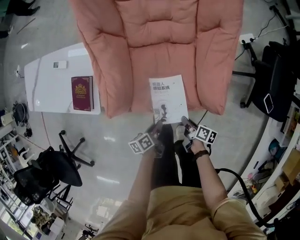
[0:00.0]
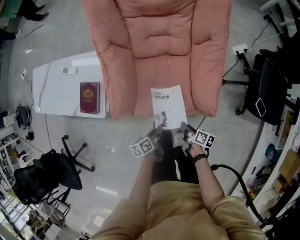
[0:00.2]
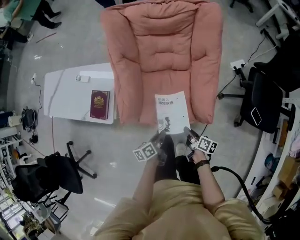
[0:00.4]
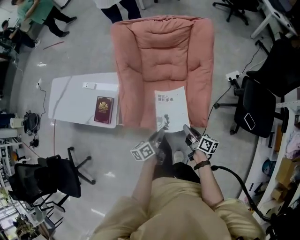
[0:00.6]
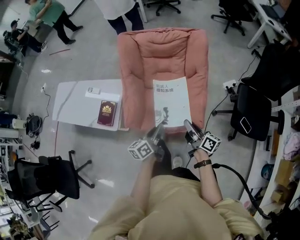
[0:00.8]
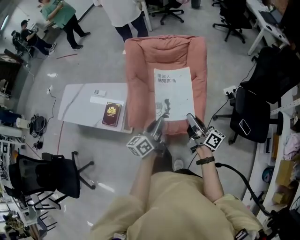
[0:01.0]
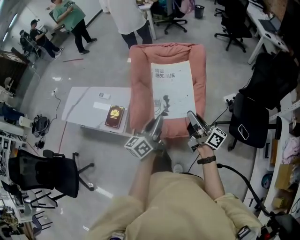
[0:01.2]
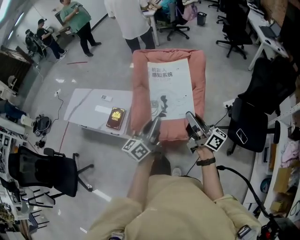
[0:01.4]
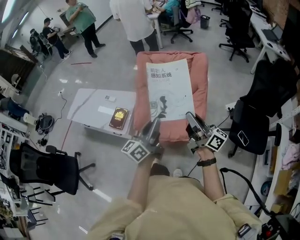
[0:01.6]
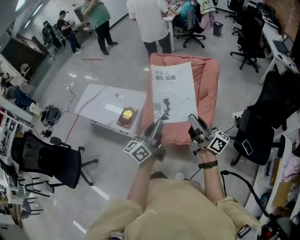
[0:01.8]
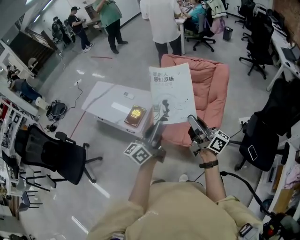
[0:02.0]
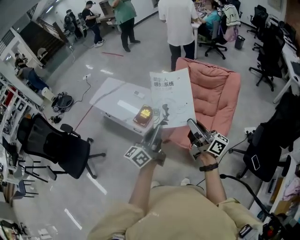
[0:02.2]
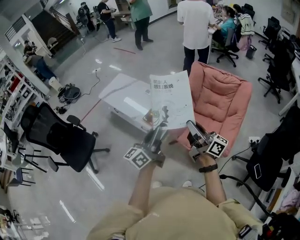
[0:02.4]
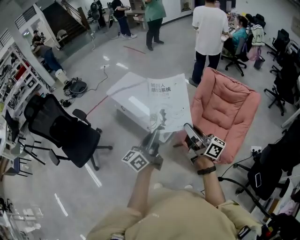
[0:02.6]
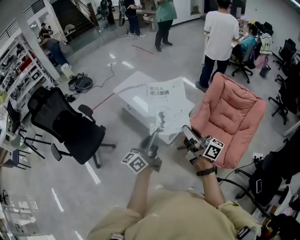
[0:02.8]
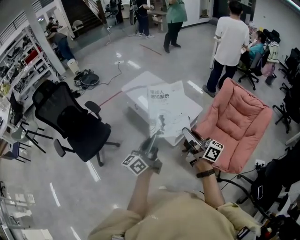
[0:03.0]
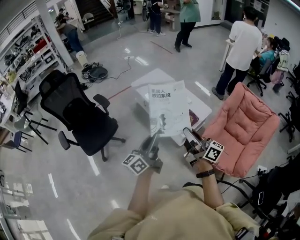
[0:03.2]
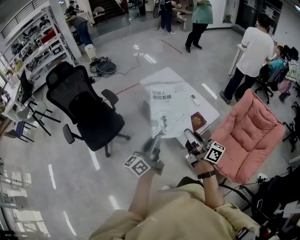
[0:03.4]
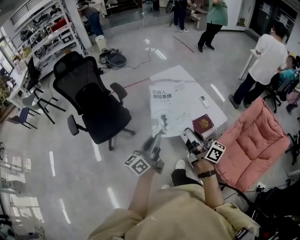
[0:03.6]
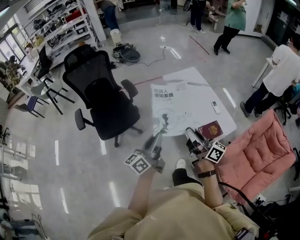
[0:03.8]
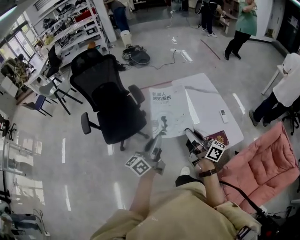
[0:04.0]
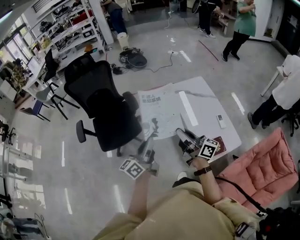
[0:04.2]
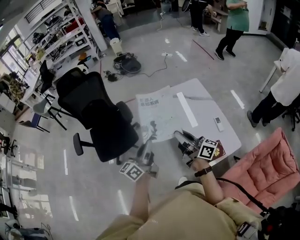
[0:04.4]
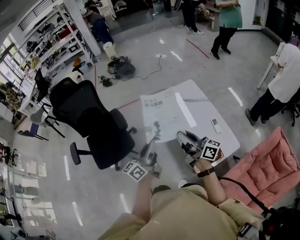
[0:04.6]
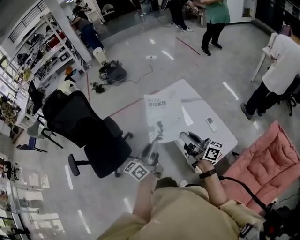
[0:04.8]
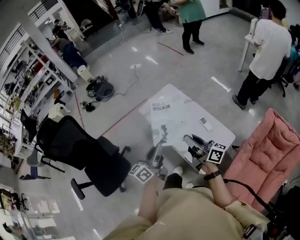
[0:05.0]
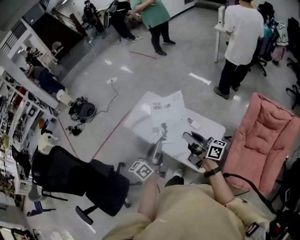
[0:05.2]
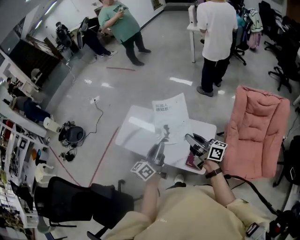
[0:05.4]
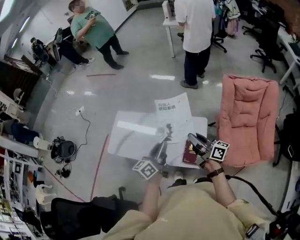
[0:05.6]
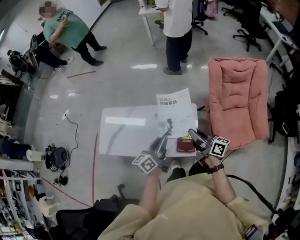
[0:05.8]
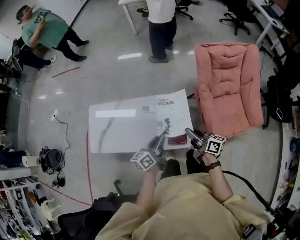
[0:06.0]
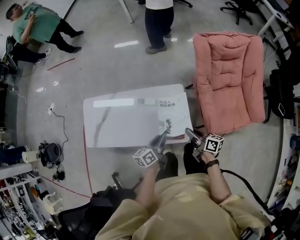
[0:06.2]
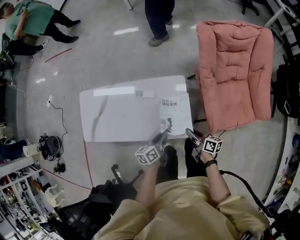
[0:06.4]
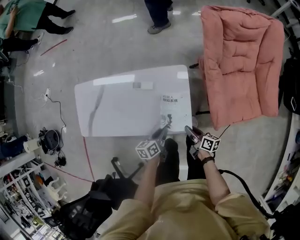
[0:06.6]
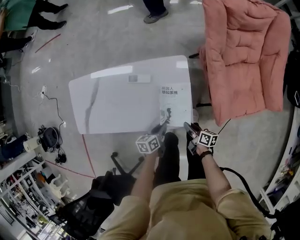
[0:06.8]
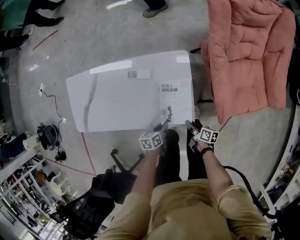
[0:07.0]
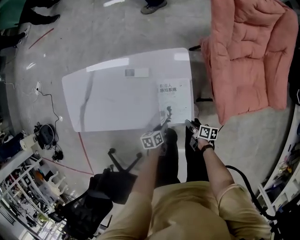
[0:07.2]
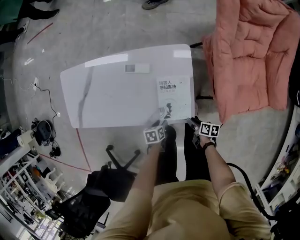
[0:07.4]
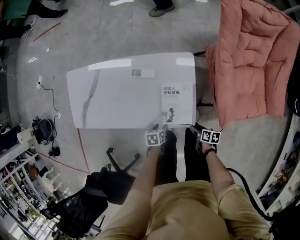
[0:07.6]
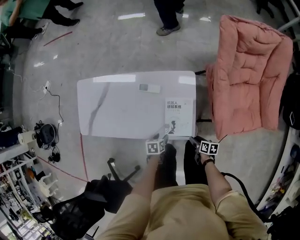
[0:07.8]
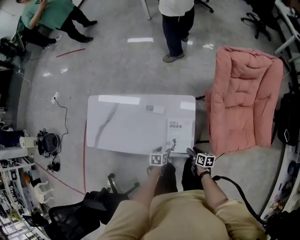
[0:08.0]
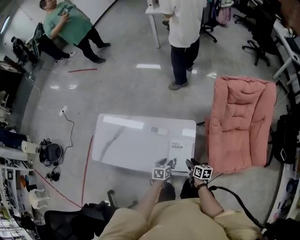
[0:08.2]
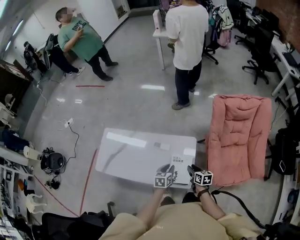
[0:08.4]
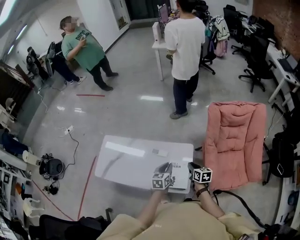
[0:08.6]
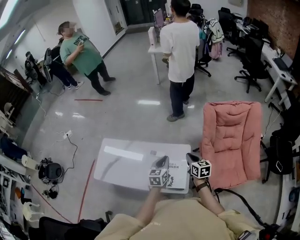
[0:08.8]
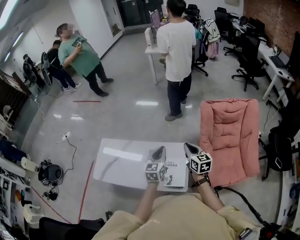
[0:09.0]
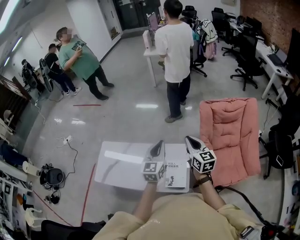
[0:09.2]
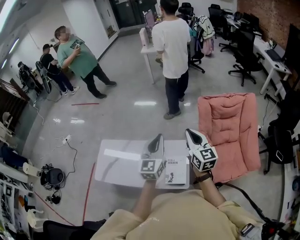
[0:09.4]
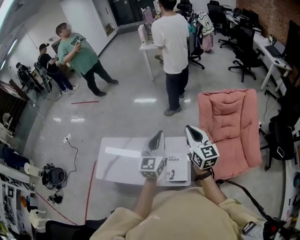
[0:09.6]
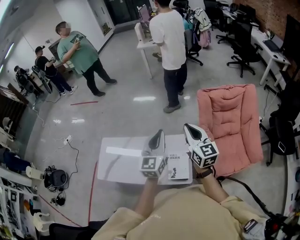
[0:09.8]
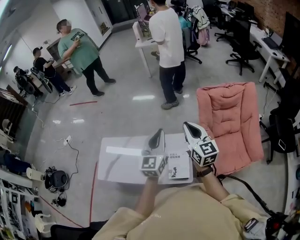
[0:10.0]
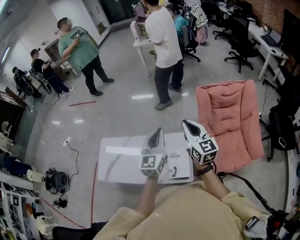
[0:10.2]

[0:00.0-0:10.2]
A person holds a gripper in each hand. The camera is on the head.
0:00.0 to 0:01.4: Both grippers move upward, roughly 60 cm. The left gripper points its fingers some 50 degrees further upward, while the right gripper points its fingers some 60 degrees further upward.
0:01.4 to 0:03.0: The two grippers travel together, about 50 cm. The right gripper changes its angle by roughly 40 degrees. The left gripper changes its angle by roughly 30 degrees.
0:03.0 to 0:04.4: The right gripper changes place by about 40 cm, and turns by roughly 30 degrees, while the left gripper ends up some 35 cm from where it was, and turns by about 30 degrees.
0:04.4 to 0:05.8: The left gripper shifts by approximately 50 cm, and turns by roughly 70 degrees. Meanwhile the right gripper moves about 35 cm, and changes its angle by roughly 70 degrees.
0:05.8 to 0:07.2: The two grippers go roughly 50 cm downward. The left gripper tilts its fingers approximately 50 degrees downward, while the right gripper points its fingers about 40 degrees further downward.
0:07.2 to 0:08.8: Both grippers travel together upward, about 50 cm. The right gripper rolls counterclockwise, seen from behind, by roughly 50 degrees, and opens, then closes once more. The left gripper turns by some 50 degrees, and opens and closes again.
0:08.8 to 0:10.2: Both grippers travel together upward, approximately 20 cm. The left gripper swivels roughly 30 degrees. The right gripper turns by approximately 30 degrees.

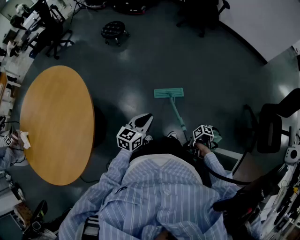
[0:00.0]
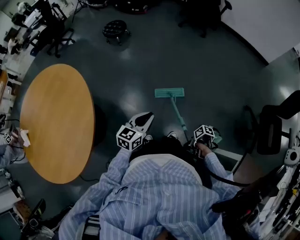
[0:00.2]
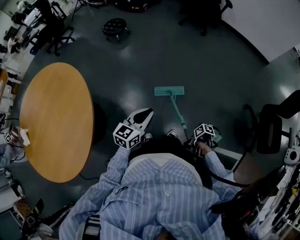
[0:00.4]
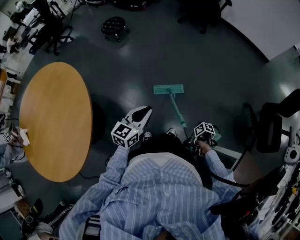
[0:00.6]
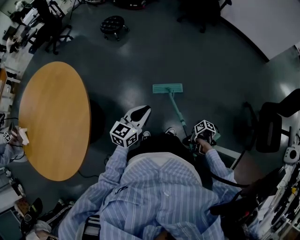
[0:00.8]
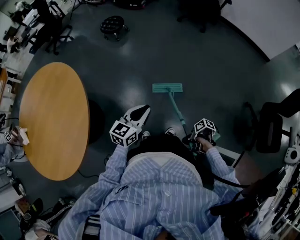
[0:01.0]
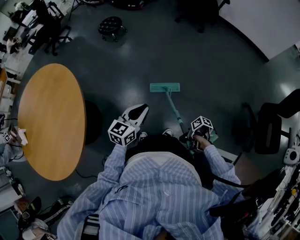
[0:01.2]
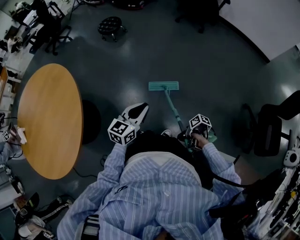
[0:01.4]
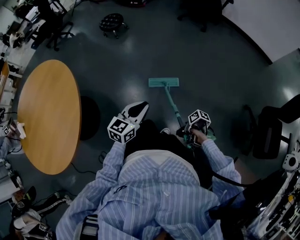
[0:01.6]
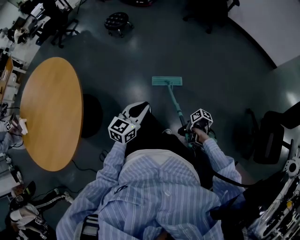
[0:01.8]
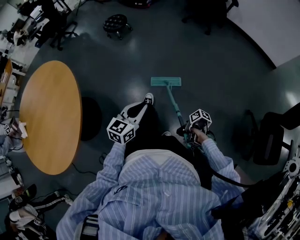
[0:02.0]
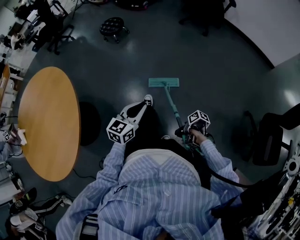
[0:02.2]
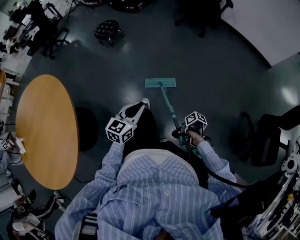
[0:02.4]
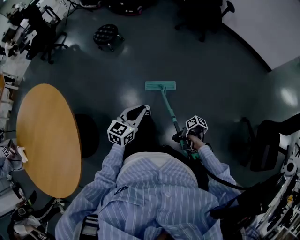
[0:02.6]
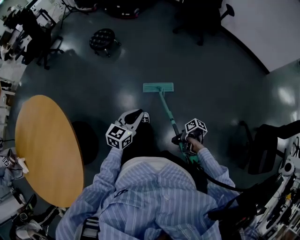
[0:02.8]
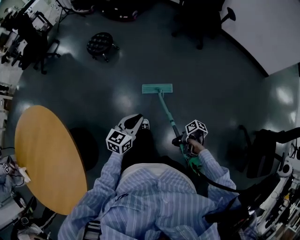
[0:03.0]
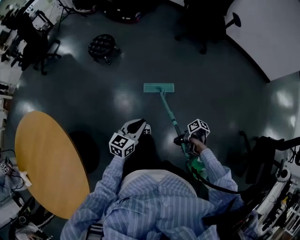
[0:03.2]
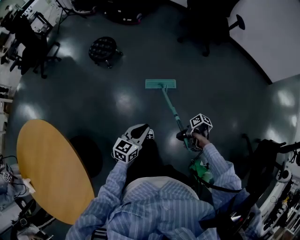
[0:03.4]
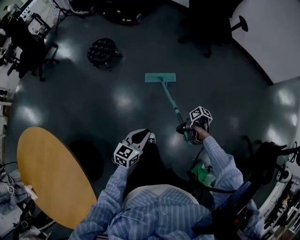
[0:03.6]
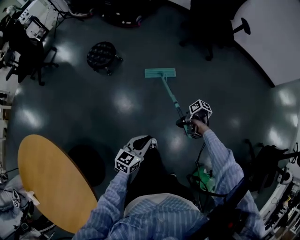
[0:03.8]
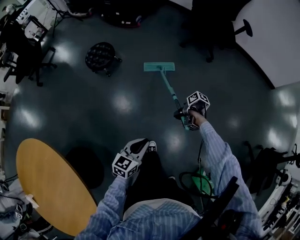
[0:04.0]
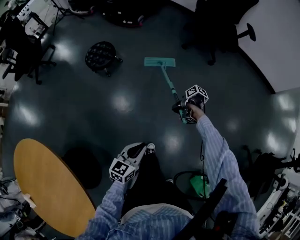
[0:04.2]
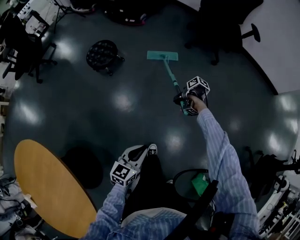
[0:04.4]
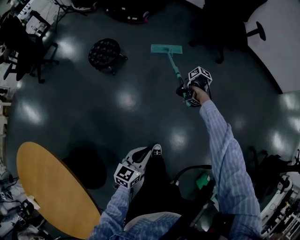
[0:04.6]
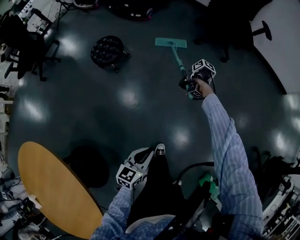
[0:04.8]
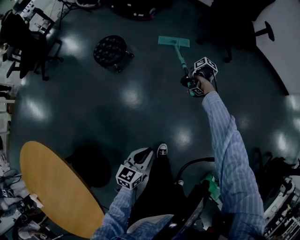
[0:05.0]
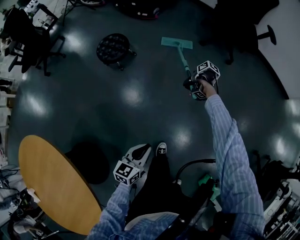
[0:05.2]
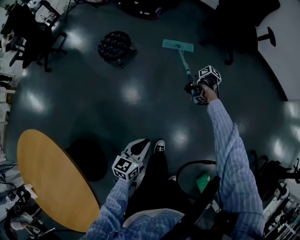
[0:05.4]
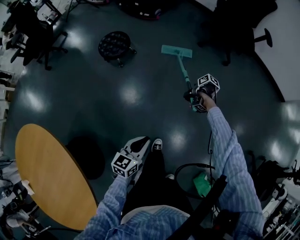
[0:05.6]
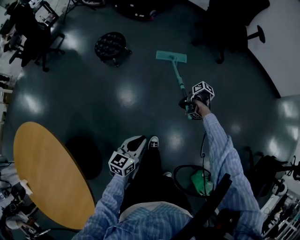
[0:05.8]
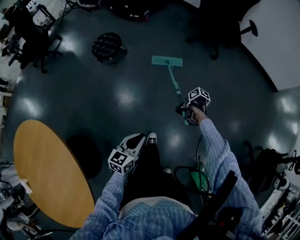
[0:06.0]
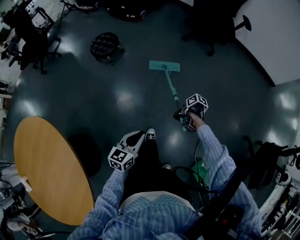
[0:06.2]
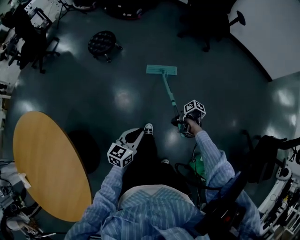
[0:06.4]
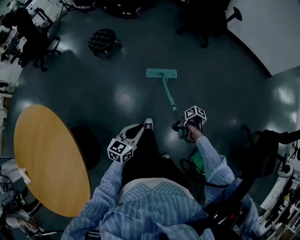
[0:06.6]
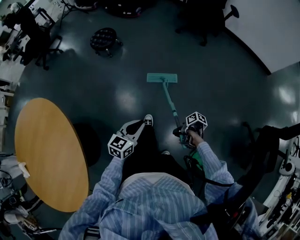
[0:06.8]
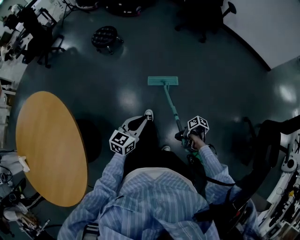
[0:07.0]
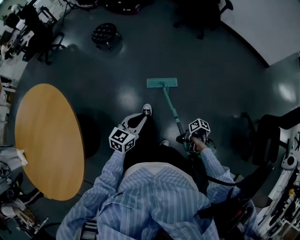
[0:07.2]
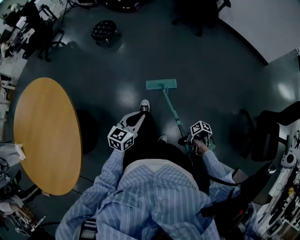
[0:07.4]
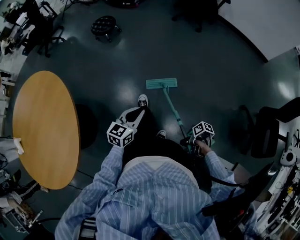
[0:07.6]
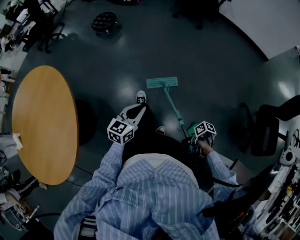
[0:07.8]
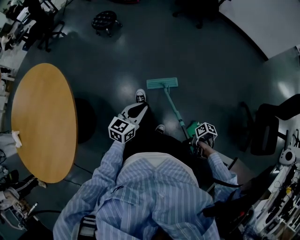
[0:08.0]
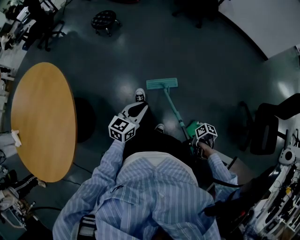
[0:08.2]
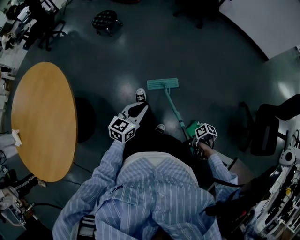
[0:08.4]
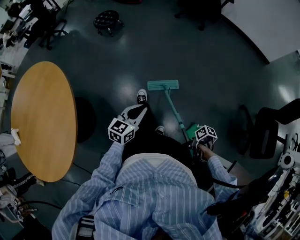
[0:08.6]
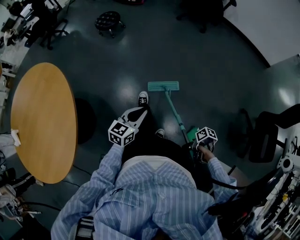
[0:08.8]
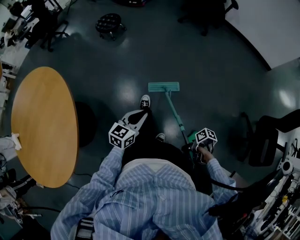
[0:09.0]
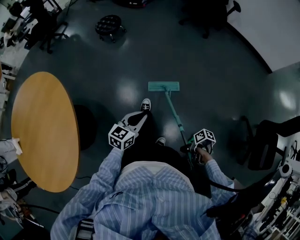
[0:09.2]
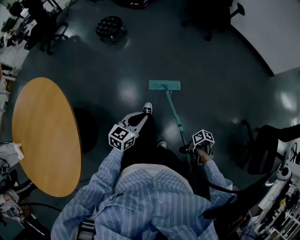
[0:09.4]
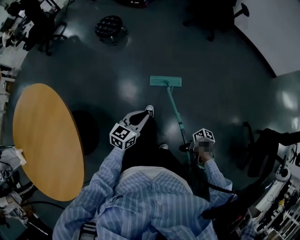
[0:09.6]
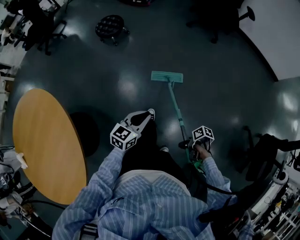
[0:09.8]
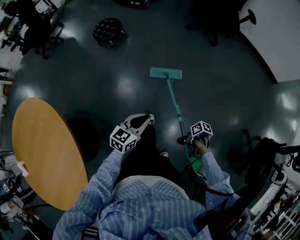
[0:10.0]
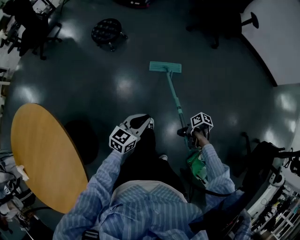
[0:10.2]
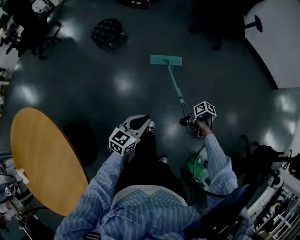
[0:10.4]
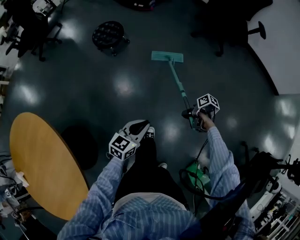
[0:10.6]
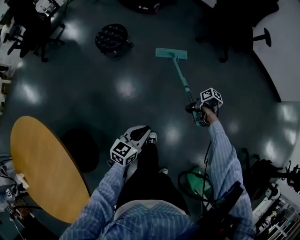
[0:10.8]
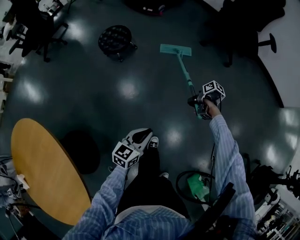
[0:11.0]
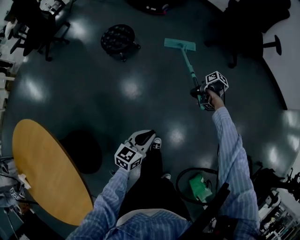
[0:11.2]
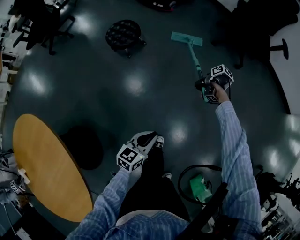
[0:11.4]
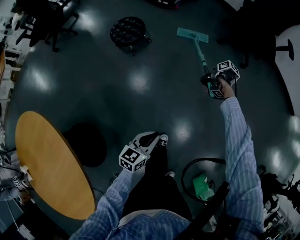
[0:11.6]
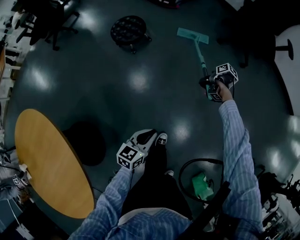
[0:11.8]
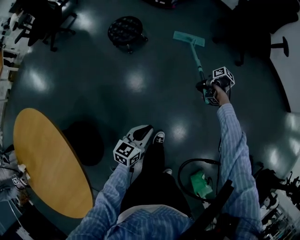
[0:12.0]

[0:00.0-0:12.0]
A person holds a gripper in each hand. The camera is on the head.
0:00.0 to 0:01.6: The left gripper moves about 10 cm.
0:01.6 to 0:03.0: The left gripper moves approximately 30 cm.
0:03.0 to 0:04.4: The left gripper moves about 20 cm.
0:04.4 to 0:06.0: The left gripper moves approximately 10 cm.
0:06.0 to 0:07.6: The left gripper moves approximately 35 cm.
0:09.0 to 0:10.4: The left gripper shifts by about 35 cm.
0:10.4 to 0:12.0: The left gripper ends up approximately 10 cm from where it was.

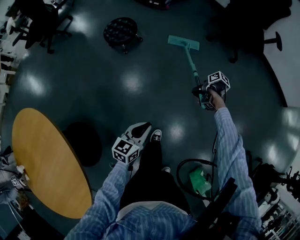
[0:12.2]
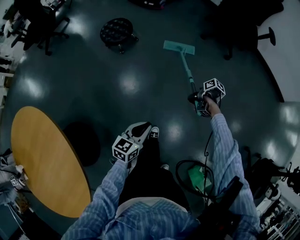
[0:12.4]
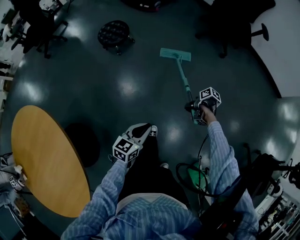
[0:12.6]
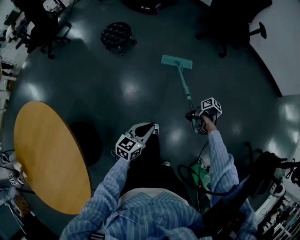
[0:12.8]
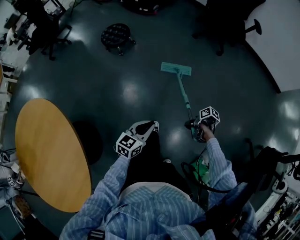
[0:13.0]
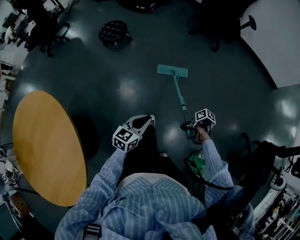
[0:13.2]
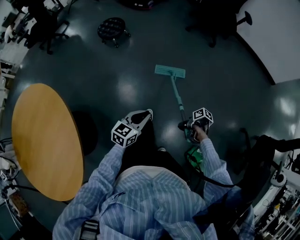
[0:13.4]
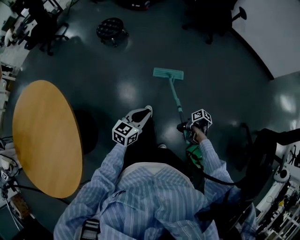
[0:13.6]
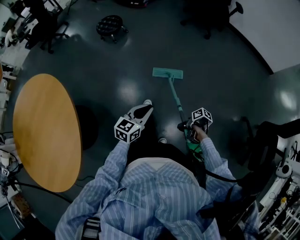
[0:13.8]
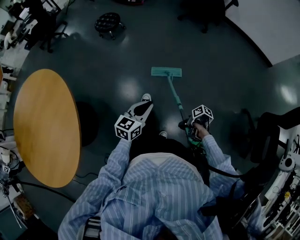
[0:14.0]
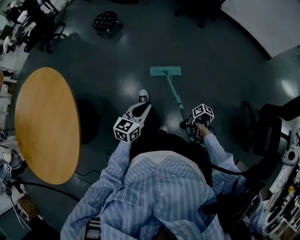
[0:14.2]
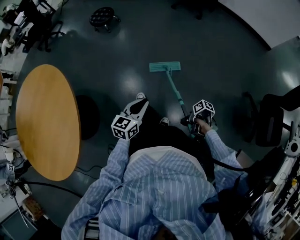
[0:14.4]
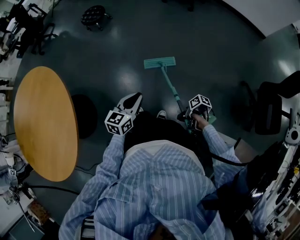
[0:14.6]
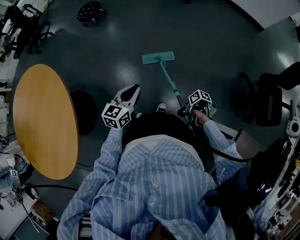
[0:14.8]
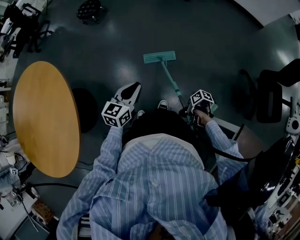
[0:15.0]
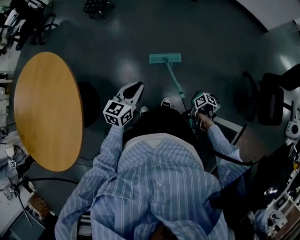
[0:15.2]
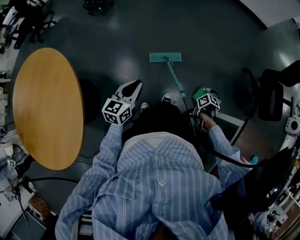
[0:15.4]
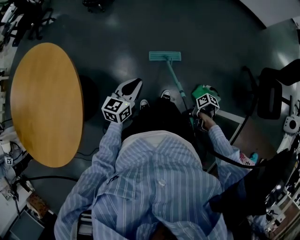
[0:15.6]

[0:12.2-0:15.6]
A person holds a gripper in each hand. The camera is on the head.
0:12.2 to 0:13.8: The left gripper changes place by some 35 cm.
0:13.8 to 0:15.6: The left gripper ends up some 25 cm from where it was.